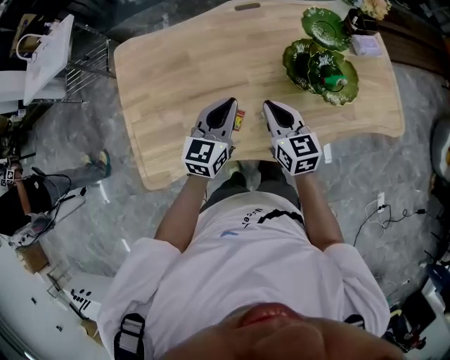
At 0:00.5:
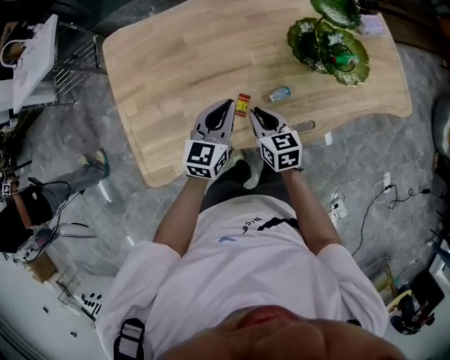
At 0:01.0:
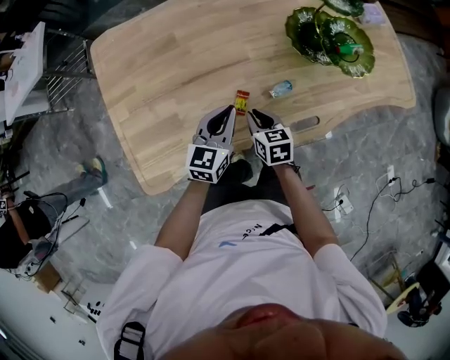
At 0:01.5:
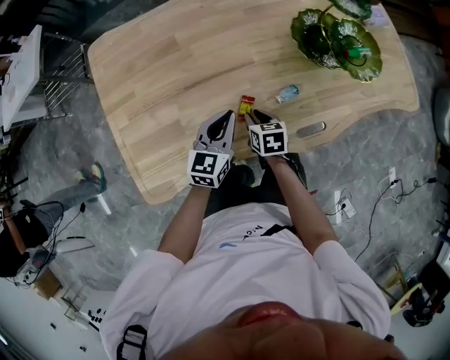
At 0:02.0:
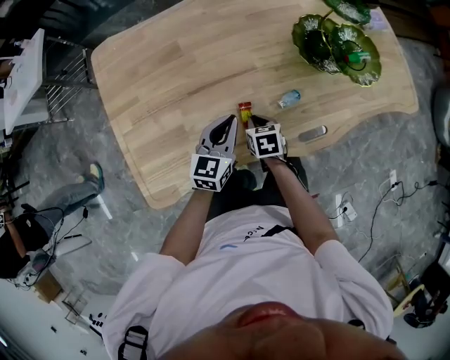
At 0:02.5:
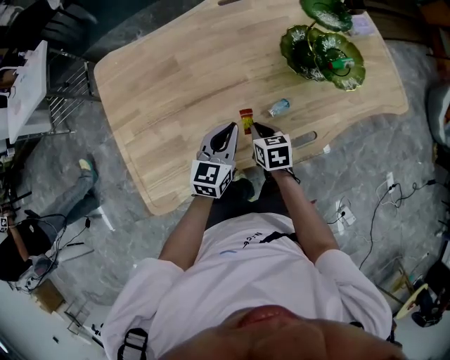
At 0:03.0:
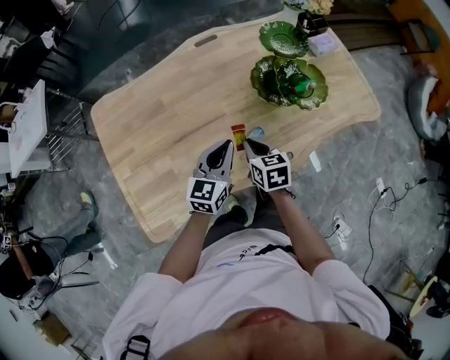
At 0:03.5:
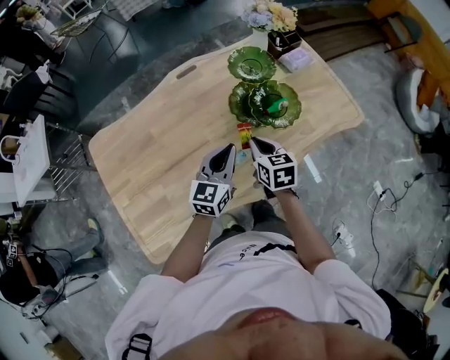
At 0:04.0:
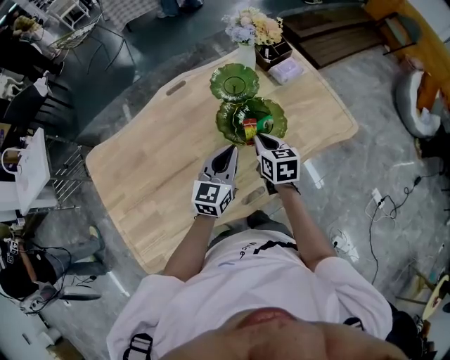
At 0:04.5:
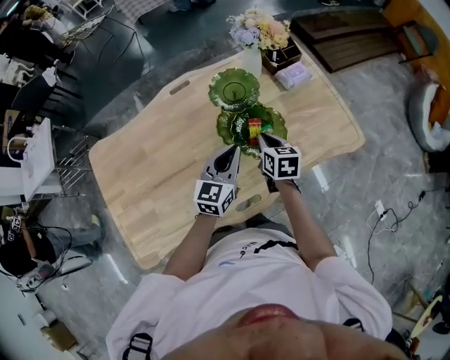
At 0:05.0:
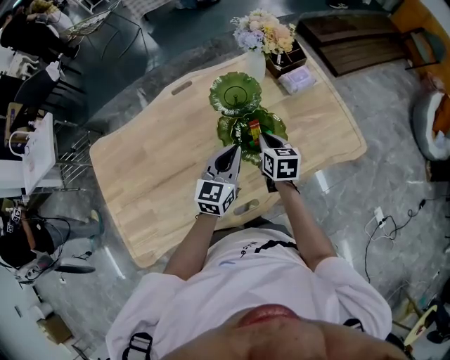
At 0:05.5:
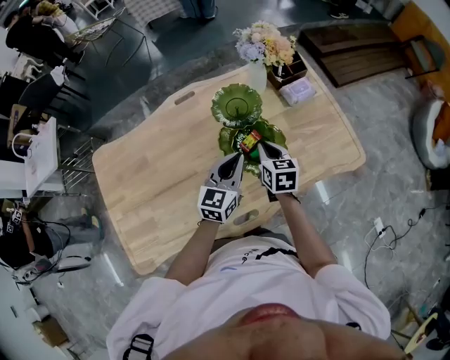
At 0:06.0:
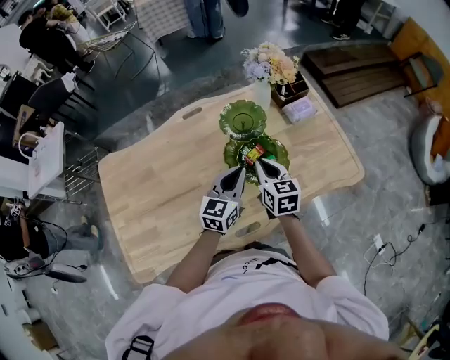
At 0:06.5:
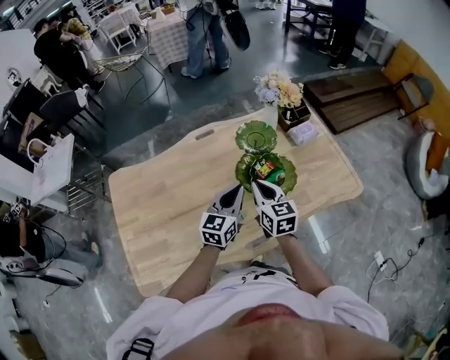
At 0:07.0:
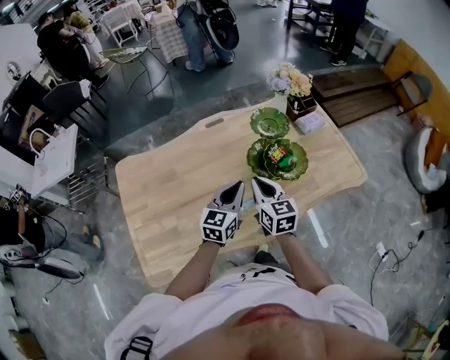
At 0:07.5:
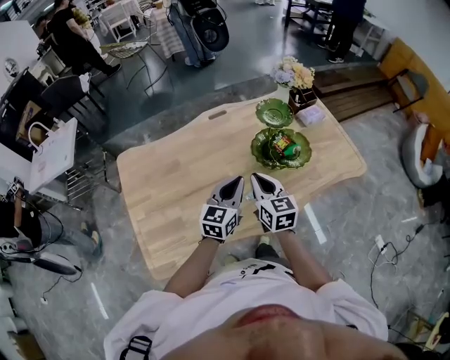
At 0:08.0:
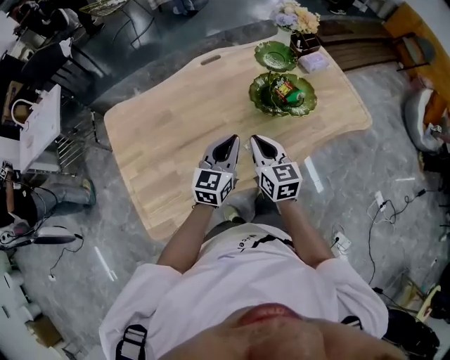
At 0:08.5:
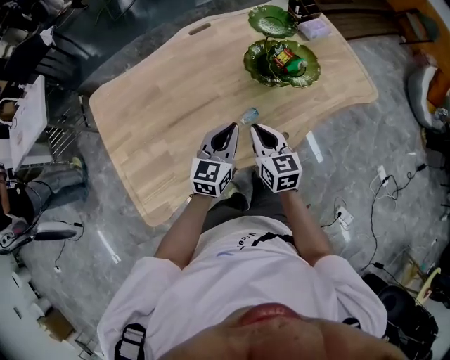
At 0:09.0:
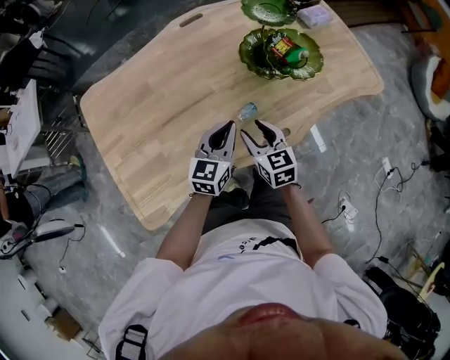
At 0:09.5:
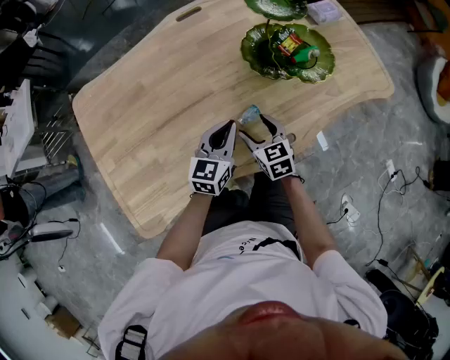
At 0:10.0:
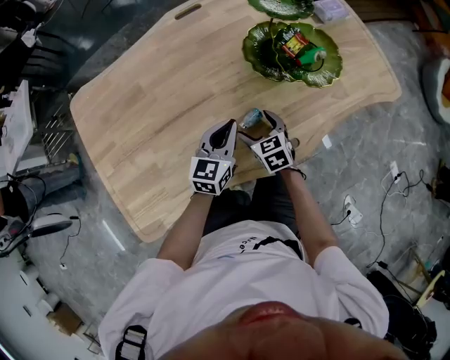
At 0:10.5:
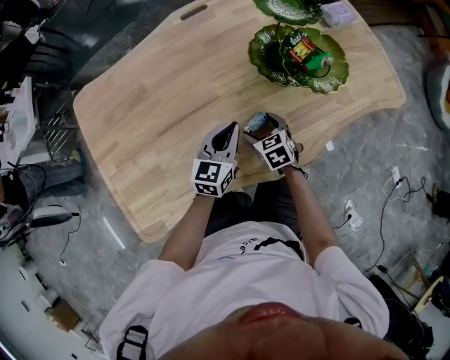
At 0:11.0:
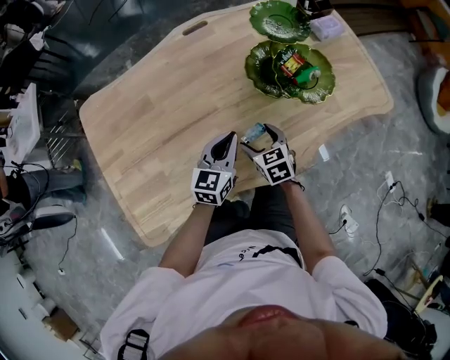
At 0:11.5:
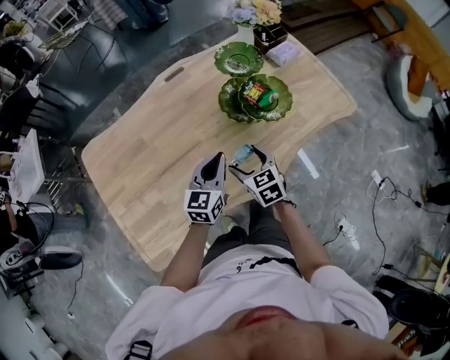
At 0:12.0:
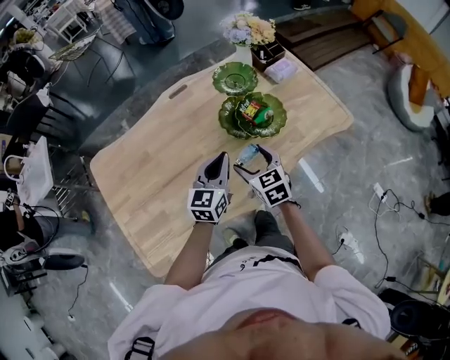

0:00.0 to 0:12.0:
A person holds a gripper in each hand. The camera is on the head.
0:00.0 to 0:02.0: The left gripper is displaced downward by about 15 cm; the right gripper moves downward, roughly 30 cm, and points its fingers some 40 degrees further downward.
0:02.0 to 0:04.0: The left gripper is displaced to the right, upward and forward by about 35 cm. Meanwhile the right gripper heads upward, to the right and forward, covering roughly 40 cm, and swivels approximately 30 degrees.
0:04.0 to 0:06.0: The left gripper goes approximately 5 cm forward.
0:06.0 to 0:08.0: The left gripper heads to the left and backward, covering approximately 25 cm. The right gripper travels backward and to the left by about 25 cm.
0:08.0 to 0:10.0: The grippers both shift downward by some 25 cm. The right gripper changes its angle by roughly 30 degrees, and opens up.
0:10.0 to 0:12.0: Both grippers move upward, approximately 20 cm.

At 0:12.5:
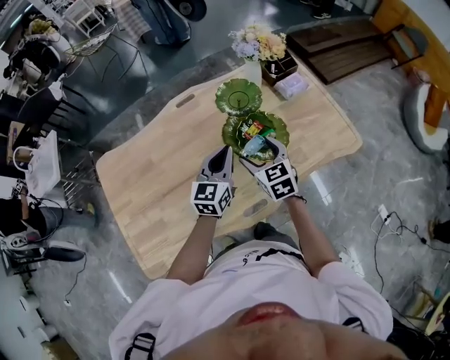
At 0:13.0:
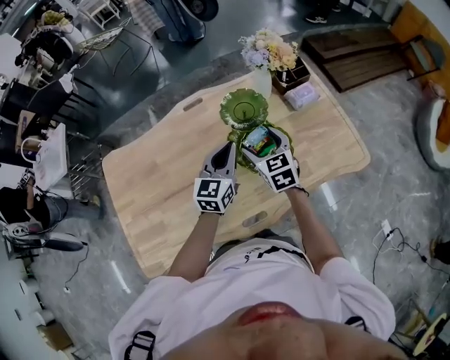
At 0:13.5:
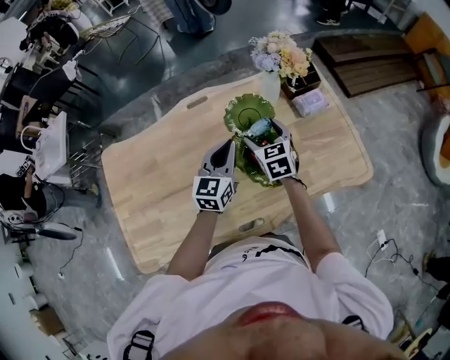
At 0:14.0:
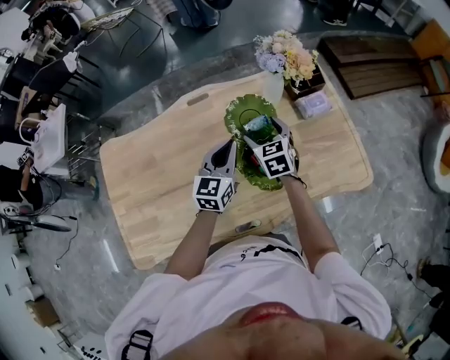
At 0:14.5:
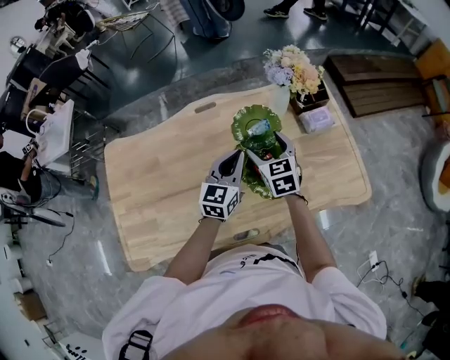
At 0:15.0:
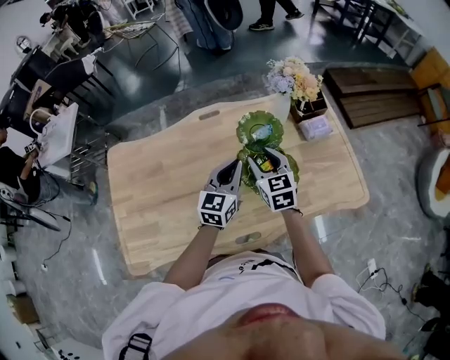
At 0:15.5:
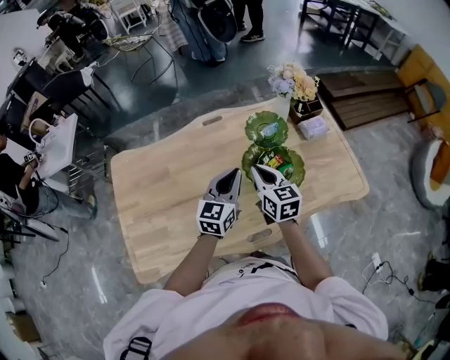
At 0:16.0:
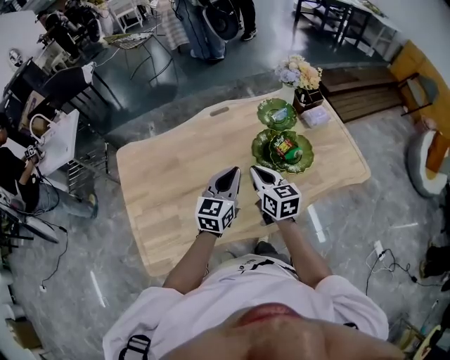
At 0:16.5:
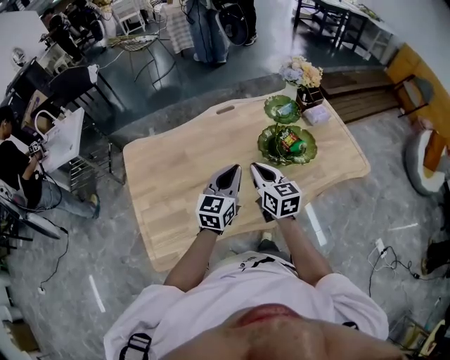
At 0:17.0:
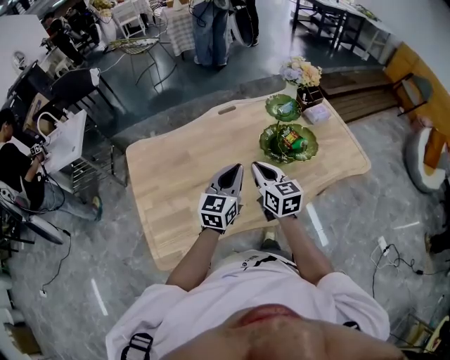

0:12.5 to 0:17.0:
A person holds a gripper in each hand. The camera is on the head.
0:12.5 to 0:14.5: The right gripper is displaced forward by approximately 15 cm. Meanwhile the left gripper heads forward, covering roughly 10 cm.
0:14.5 to 0:17.0: Both grippers move backward and to the left, roughly 30 cm. The right gripper changes its angle by approximately 20 degrees, and closes its fingers.

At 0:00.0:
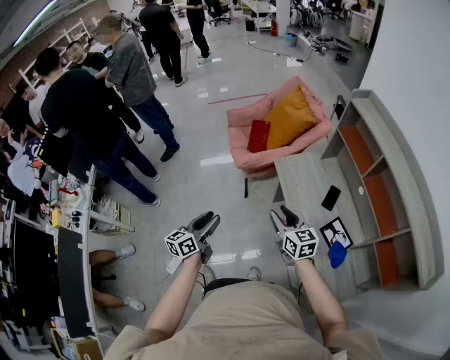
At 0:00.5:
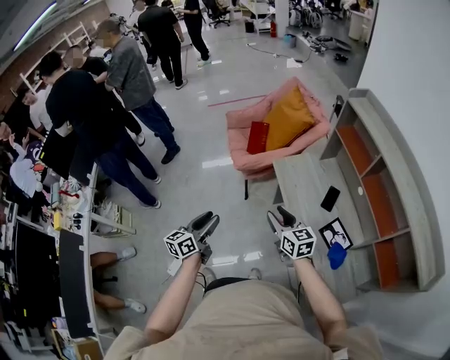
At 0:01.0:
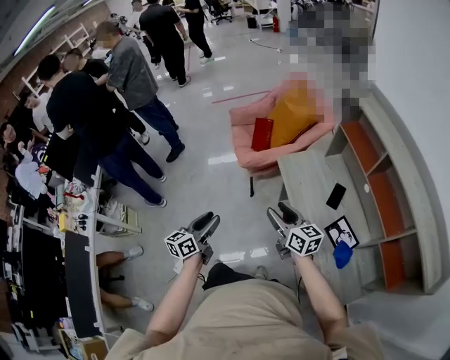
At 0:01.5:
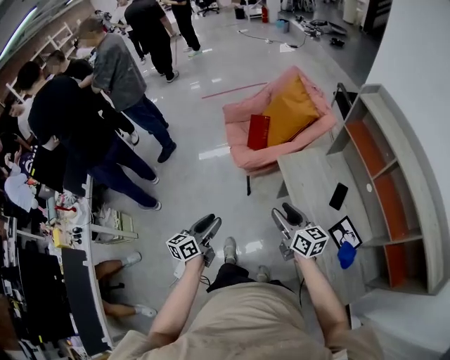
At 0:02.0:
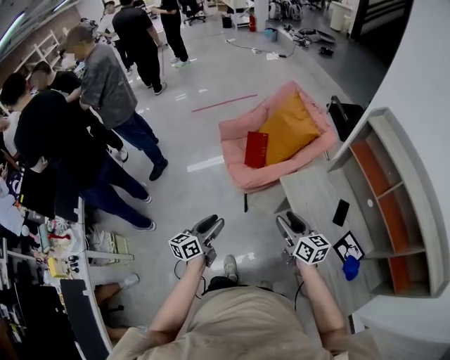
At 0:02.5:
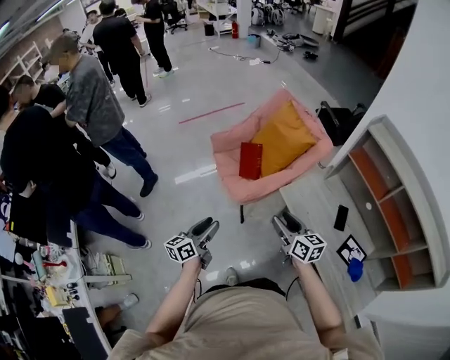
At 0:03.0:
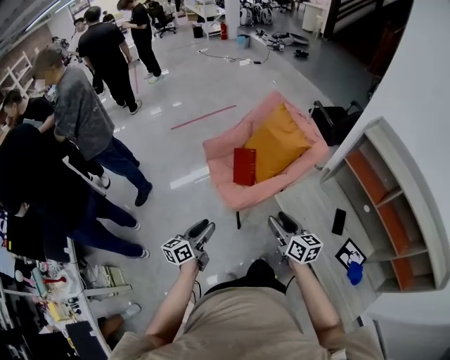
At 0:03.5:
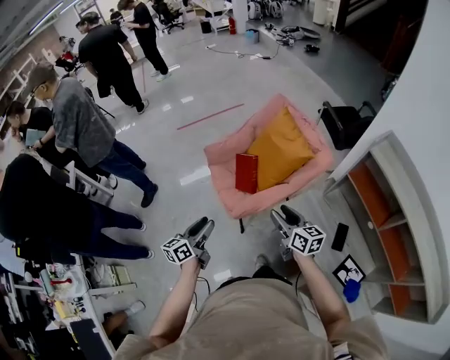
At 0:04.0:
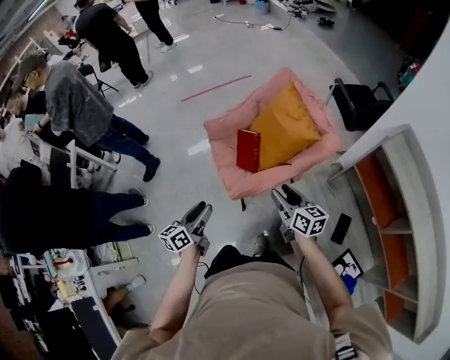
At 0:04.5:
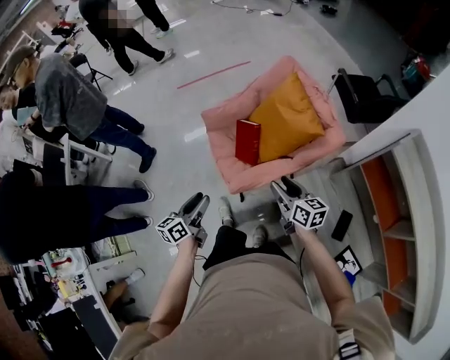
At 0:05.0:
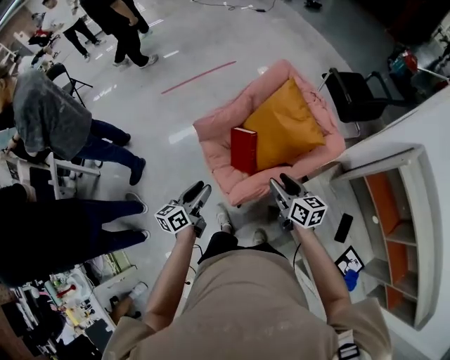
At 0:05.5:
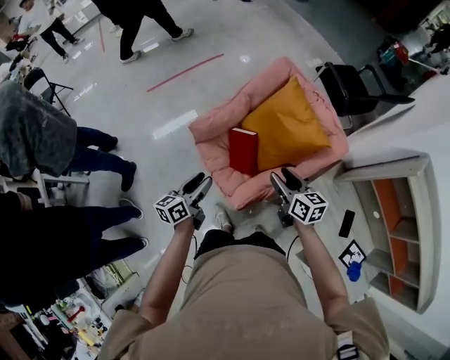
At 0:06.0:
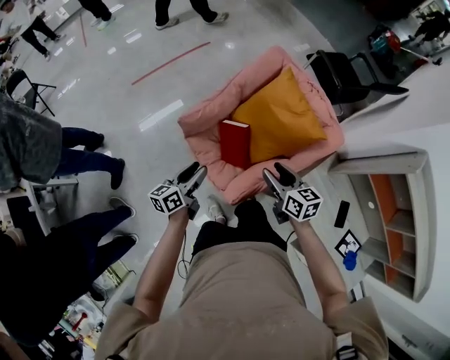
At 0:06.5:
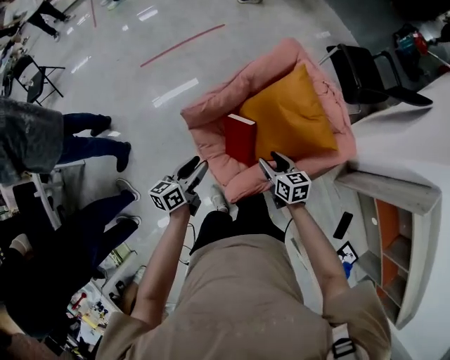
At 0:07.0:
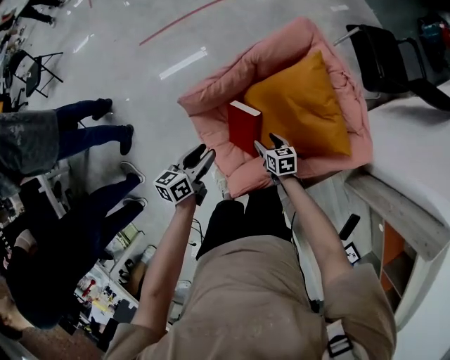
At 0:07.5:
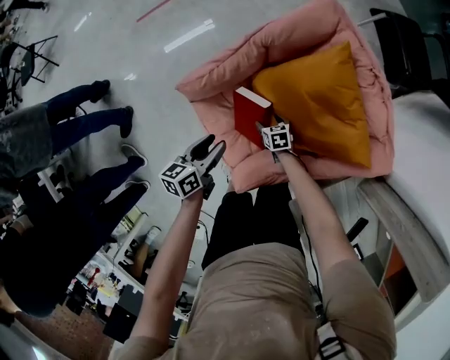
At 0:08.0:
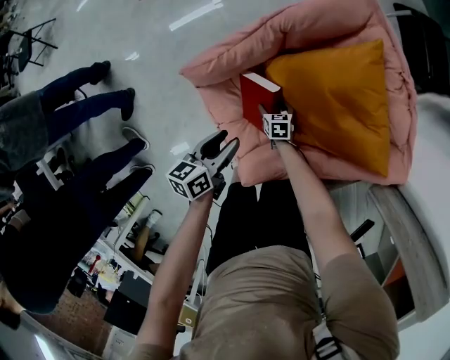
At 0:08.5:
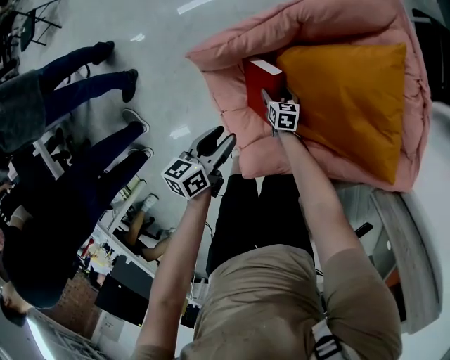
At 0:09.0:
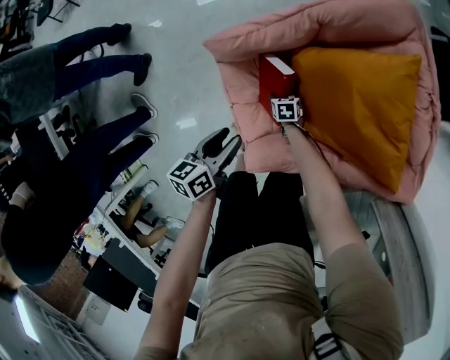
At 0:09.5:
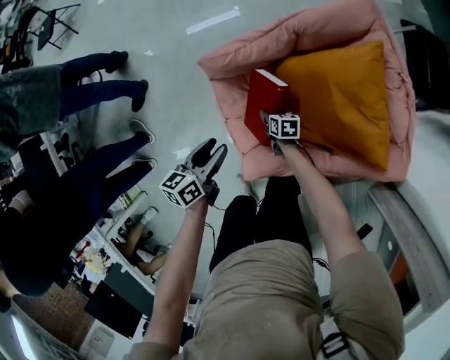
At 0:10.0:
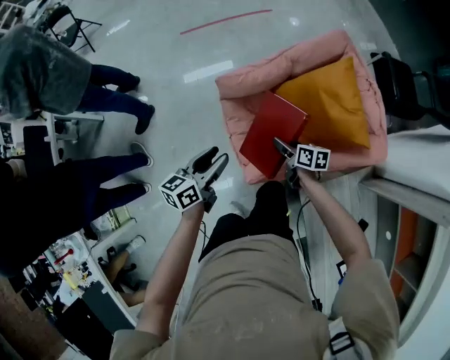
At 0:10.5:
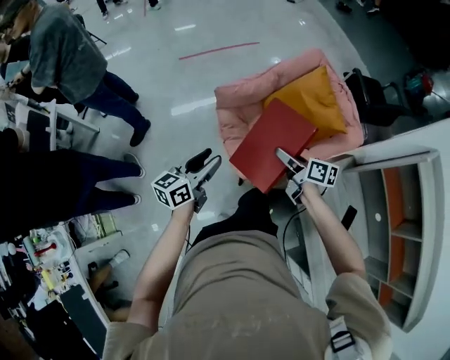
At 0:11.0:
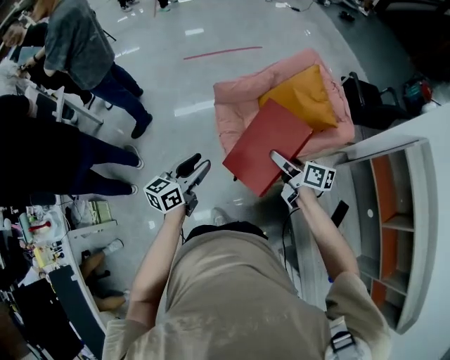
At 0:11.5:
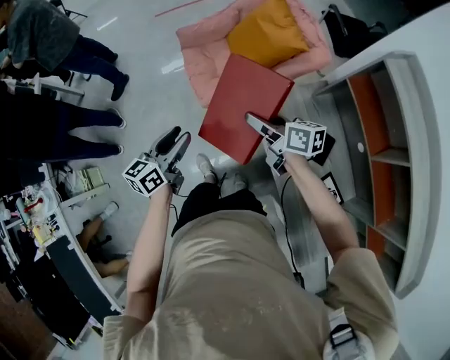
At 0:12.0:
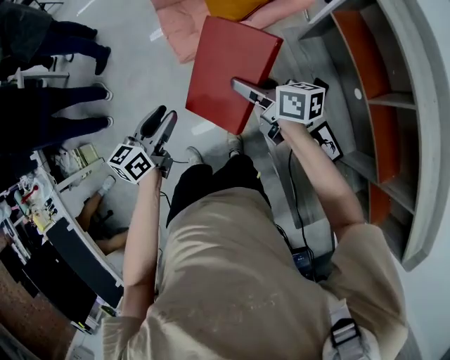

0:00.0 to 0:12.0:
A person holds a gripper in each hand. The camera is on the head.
0:00.0 to 0:02.0: The two grippers go about 20 cm forward and to the left.
0:02.0 to 0:04.0: Both grippers move forward, about 25 cm.
0:04.0 to 0:06.0: The left gripper goes some 30 cm forward; the right gripper is displaced forward and to the left by about 25 cm.
0:06.0 to 0:08.0: The right gripper moves downward and forward, approximately 60 cm, points its fingers approximately 30 degrees further downward, and opens its fingers, while the left gripper moves downward, forward and to the right, about 25 cm, and rotates roughly 20 degrees.
0:08.0 to 0:10.0: The left gripper goes about 30 cm upward, backward and to the left, and rotates some 20 degrees, while the right gripper goes about 35 cm upward and backward, and turns by some 30 degrees.
0:10.0 to 0:12.0: Both grippers are carried backward, approximately 50 cm. The right gripper goes some 20 cm upward.
